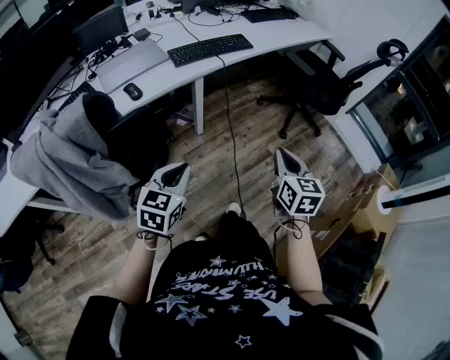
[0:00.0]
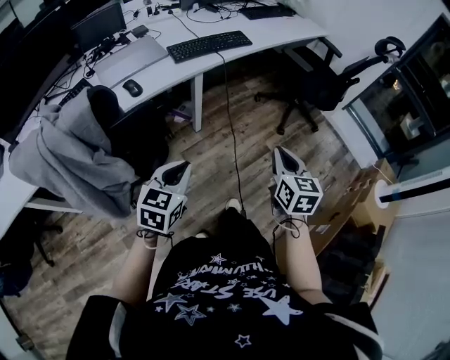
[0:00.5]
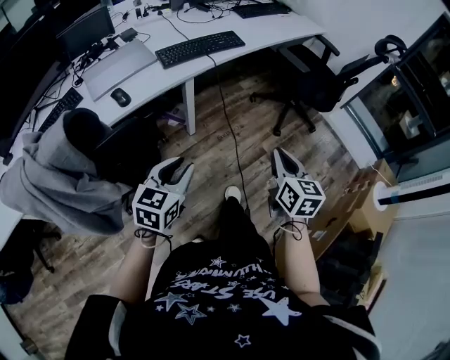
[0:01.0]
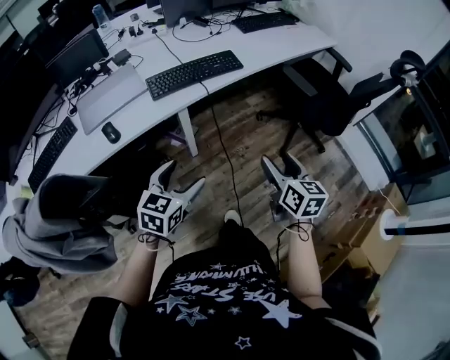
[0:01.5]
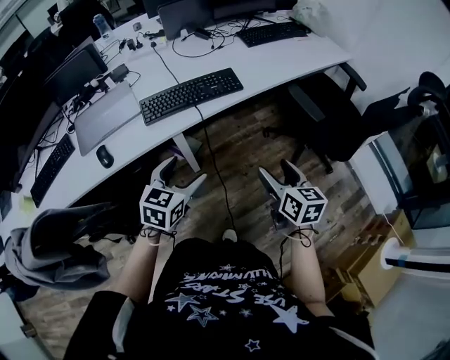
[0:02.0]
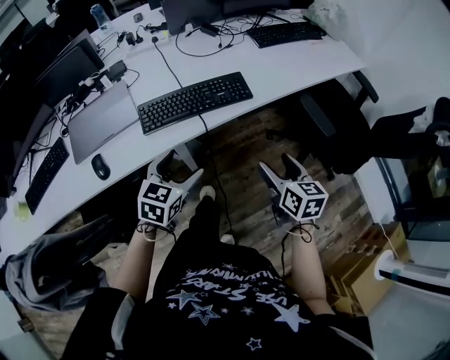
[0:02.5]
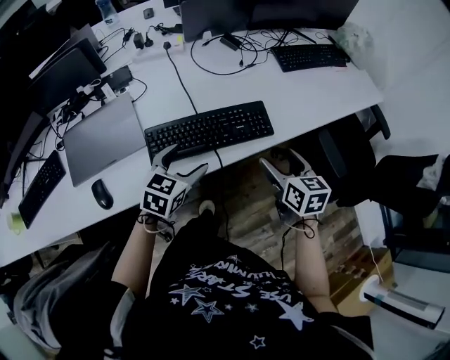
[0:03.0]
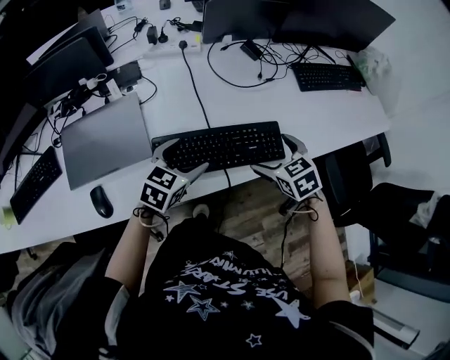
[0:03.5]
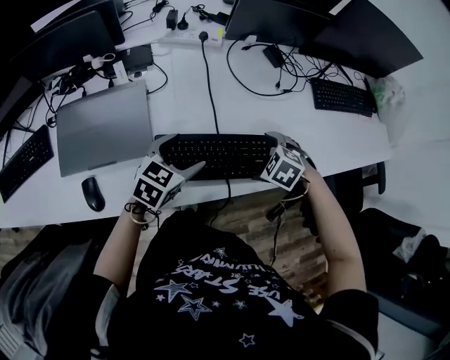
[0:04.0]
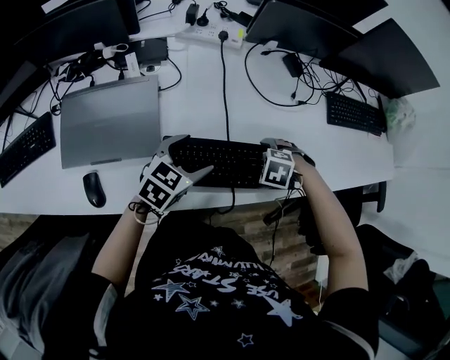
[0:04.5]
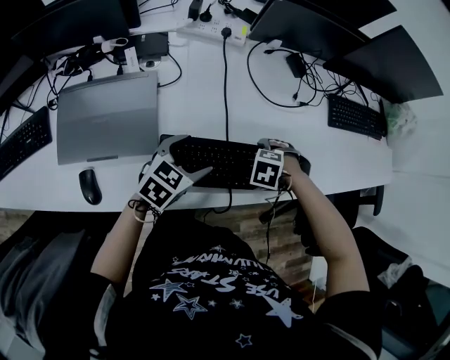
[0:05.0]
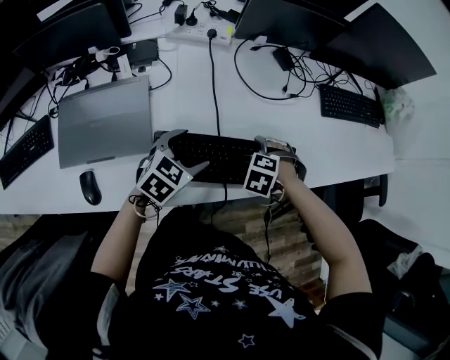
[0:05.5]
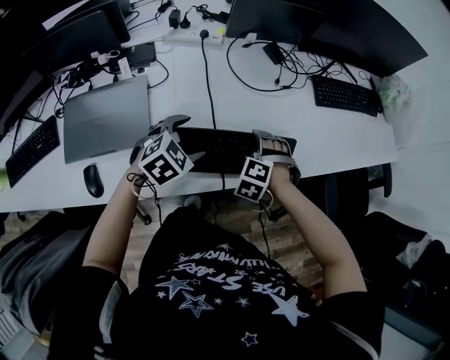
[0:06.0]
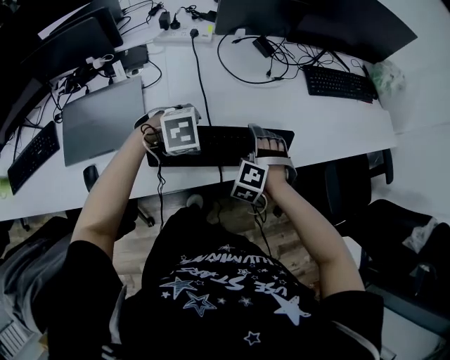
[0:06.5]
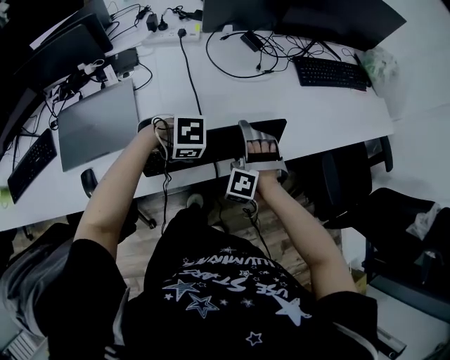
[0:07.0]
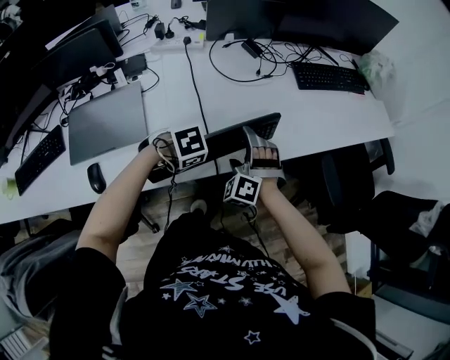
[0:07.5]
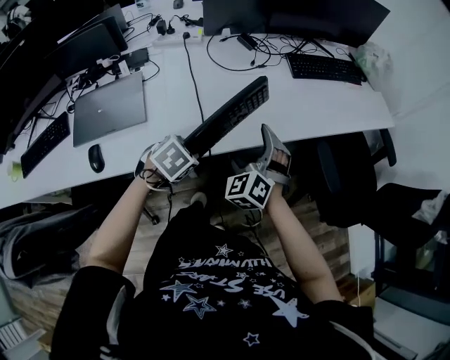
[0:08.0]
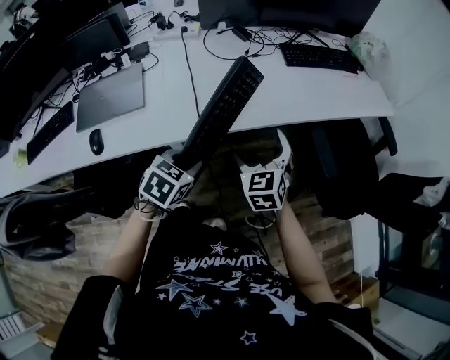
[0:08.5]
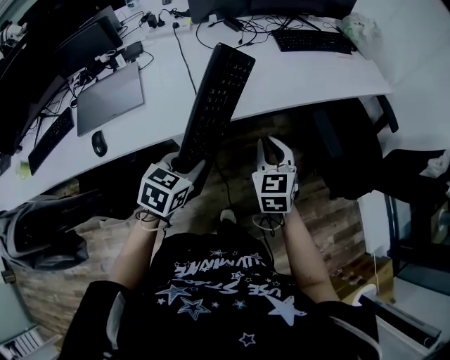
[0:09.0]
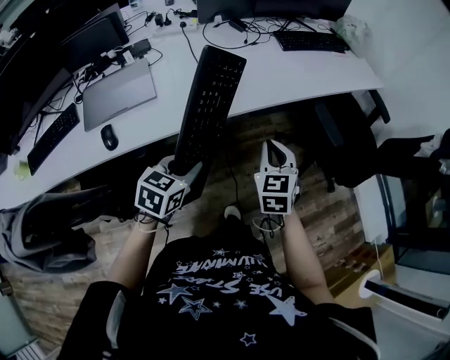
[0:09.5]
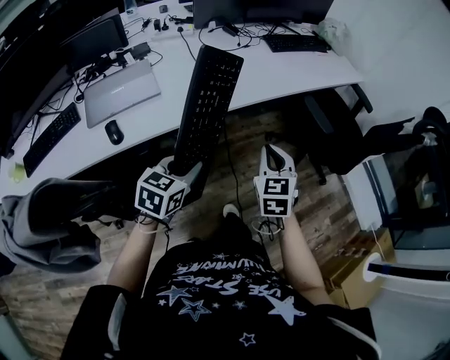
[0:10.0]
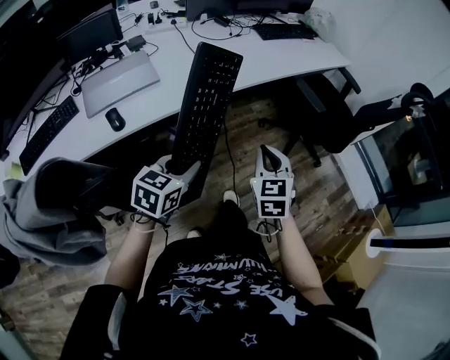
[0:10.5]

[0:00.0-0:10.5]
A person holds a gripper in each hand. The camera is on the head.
0:00.0 to 0:02.0: Both grippers travel together forward, approximately 35 cm. The right gripper opens up, while the left gripper opens.
0:02.0 to 0:04.0: The right gripper shifts by approximately 50 cm, angles its fingers downward, by approximately 60 degrees, and opens, while the left gripper ends up some 40 cm from where it was.
0:04.0 to 0:06.5: The left gripper shifts by some 5 cm, and tips its fingers downward by some 30 degrees. The right gripper turns by about 30 degrees.
0:06.5 to 0:08.5: The left gripper moves approximately 25 cm, rotates some 50 degrees, and closes up, while the right gripper shifts by about 25 cm, and twists some 50 degrees clockwise, seen from behind.
0:08.5 to 0:10.5: Both grippers move backward, roughly 30 cm. The left gripper swivels roughly 20 degrees, while the right gripper turns by some 20 degrees, and closes.

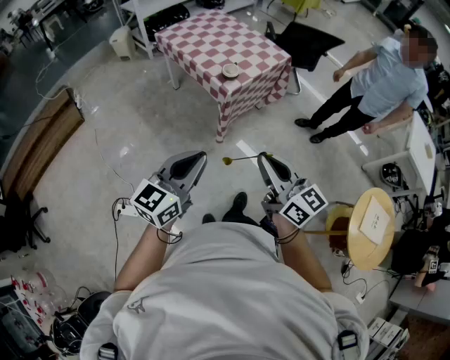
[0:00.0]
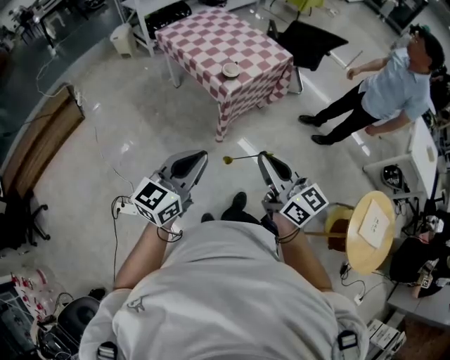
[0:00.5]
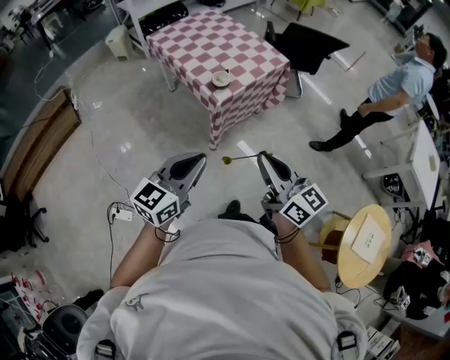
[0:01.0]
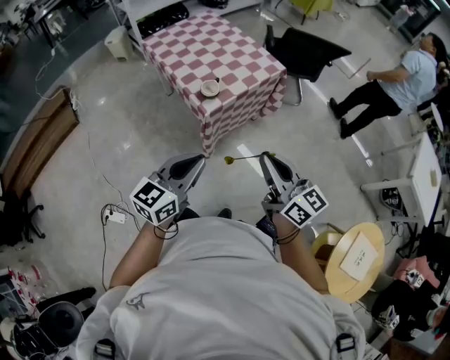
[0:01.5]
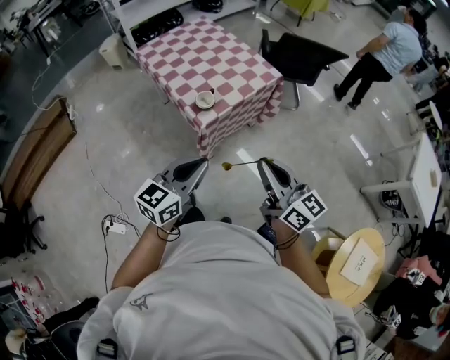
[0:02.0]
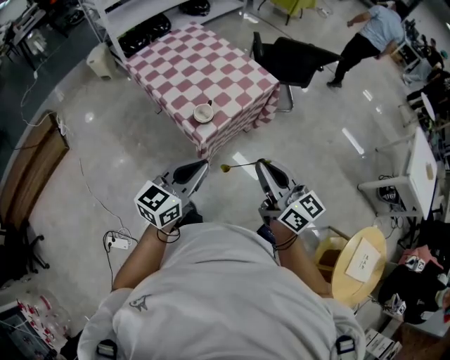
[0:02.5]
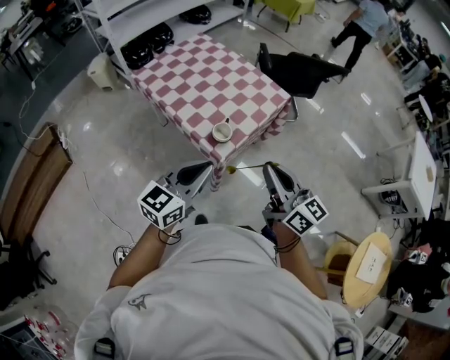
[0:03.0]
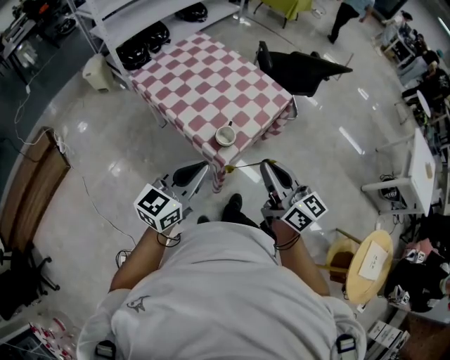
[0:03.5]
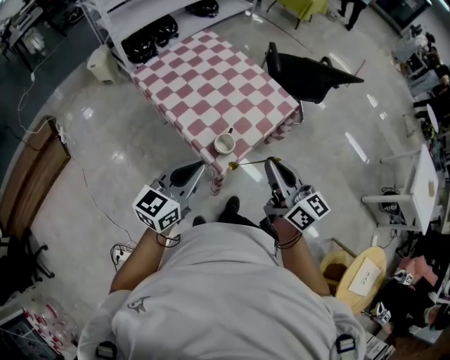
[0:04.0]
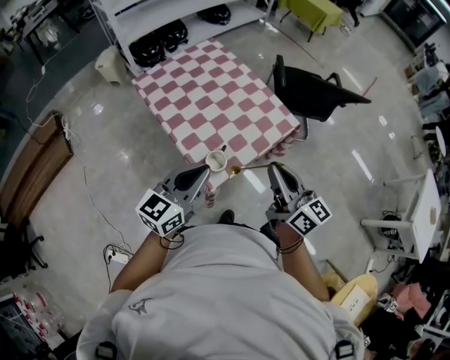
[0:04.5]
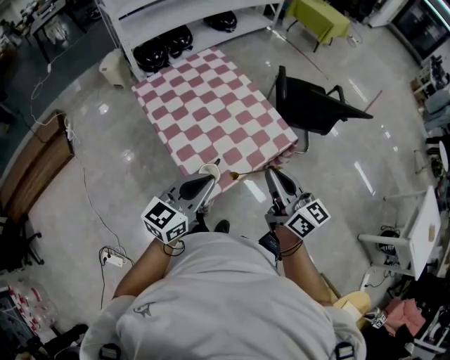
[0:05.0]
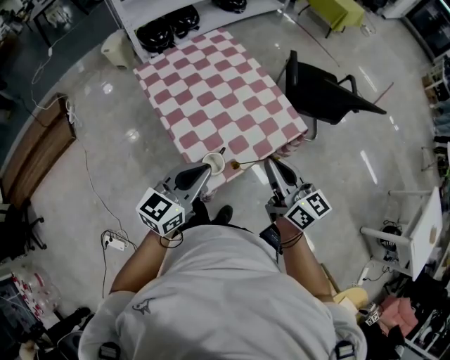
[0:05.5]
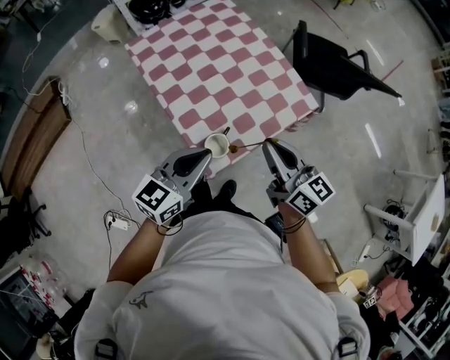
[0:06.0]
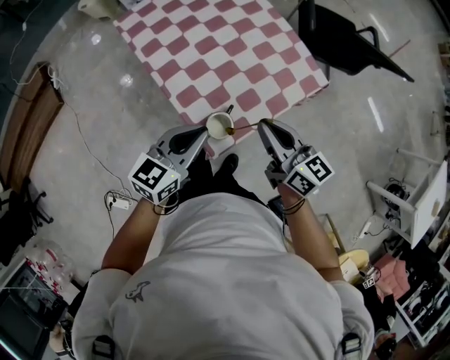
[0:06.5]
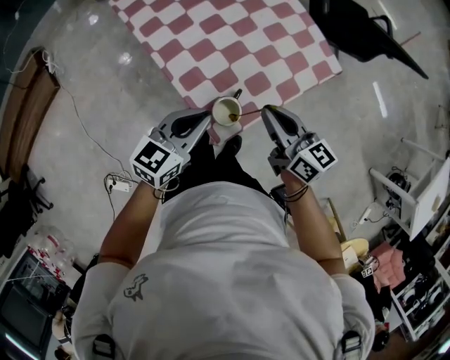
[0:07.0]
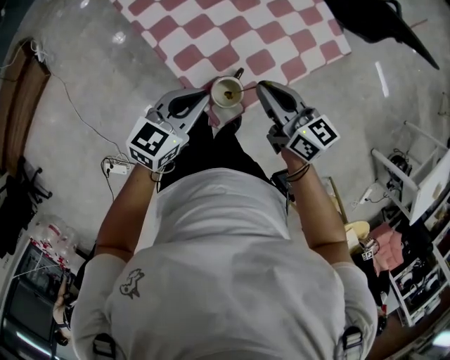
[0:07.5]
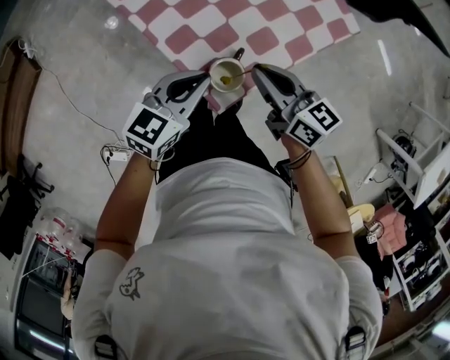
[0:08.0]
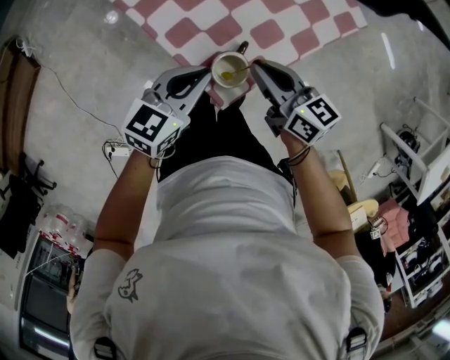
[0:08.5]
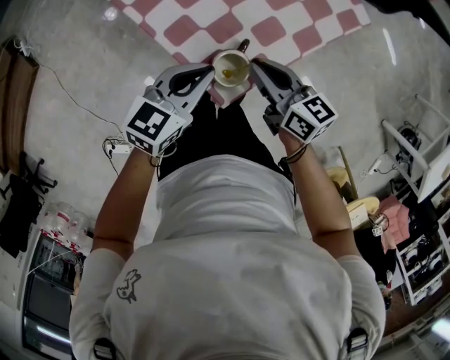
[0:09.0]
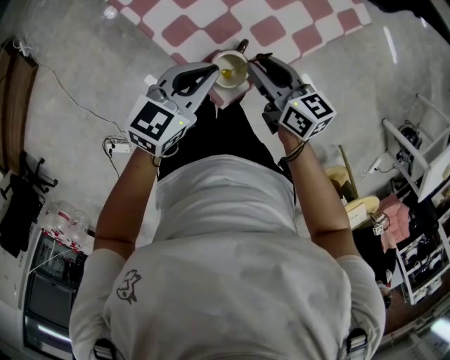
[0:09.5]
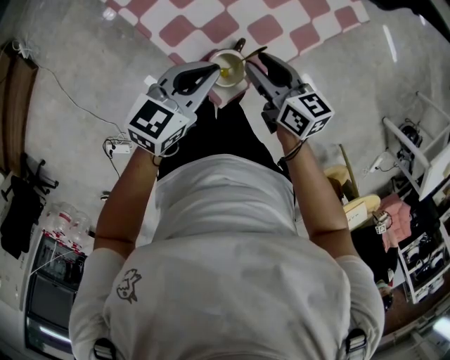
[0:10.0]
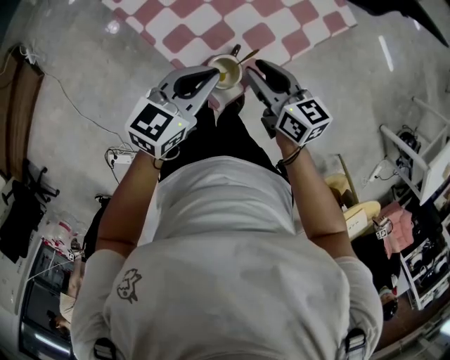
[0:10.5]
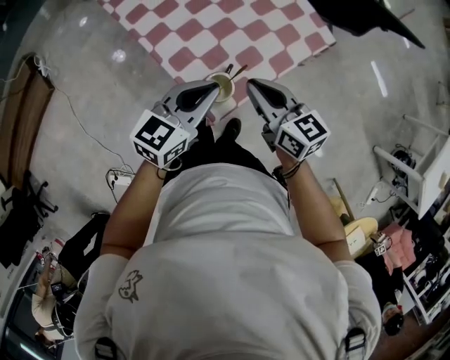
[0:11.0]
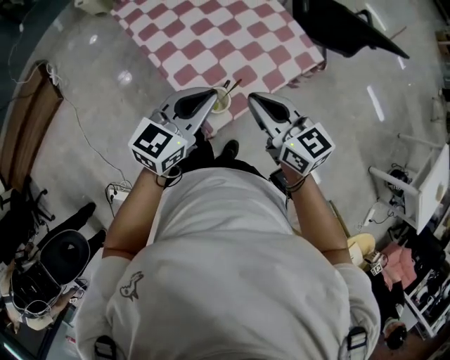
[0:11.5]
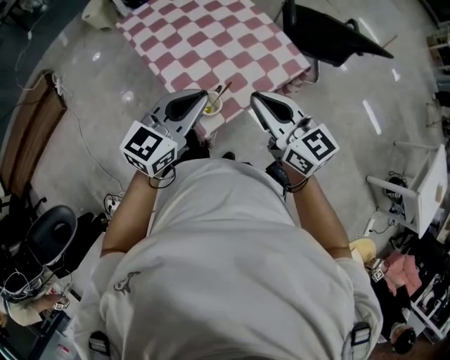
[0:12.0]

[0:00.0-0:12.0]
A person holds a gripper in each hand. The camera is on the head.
0:00.0 to 0:02.0: Both grippers move forward and to the right, approximately 30 cm.
0:02.0 to 0:04.0: Both grippers move forward and to the left, some 25 cm.
0:04.0 to 0:06.0: The right gripper goes about 20 cm forward and downward, while the left gripper travels forward, to the right and downward by about 15 cm.
0:06.0 to 0:08.0: Both grippers travel together downward, approximately 15 cm.
0:08.0 to 0:10.0: The right gripper shifts roughly 5 cm downward, and opens.
0:10.0 to 0:12.0: The two grippers go approximately 25 cm upward. The left gripper swivels roughly 30 degrees, while the right gripper changes its angle by approximately 40 degrees, and closes up.

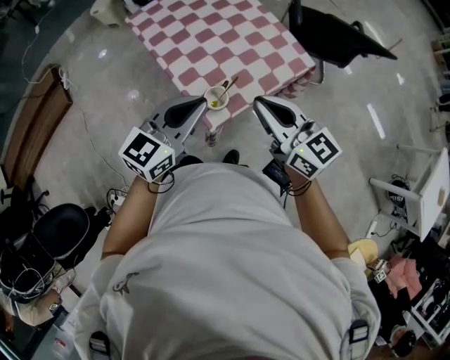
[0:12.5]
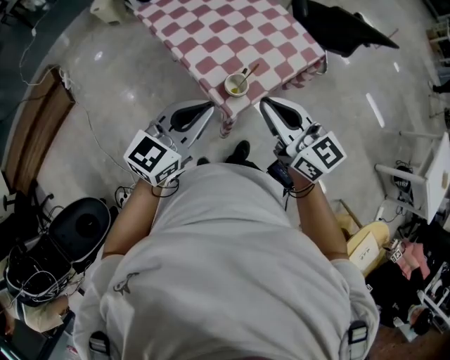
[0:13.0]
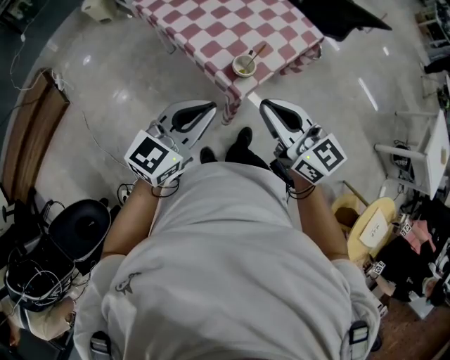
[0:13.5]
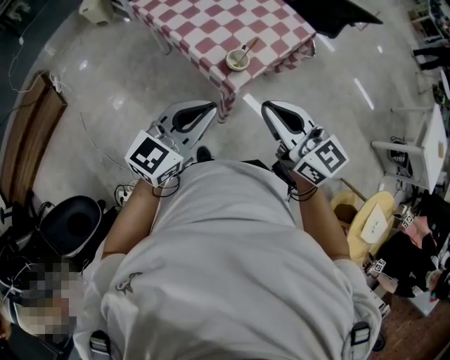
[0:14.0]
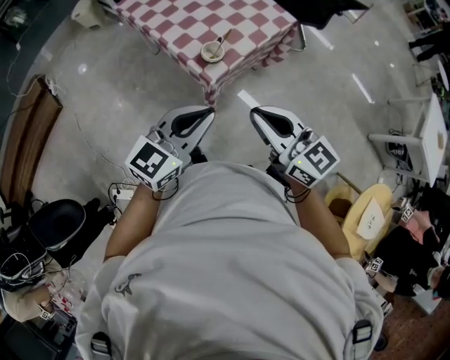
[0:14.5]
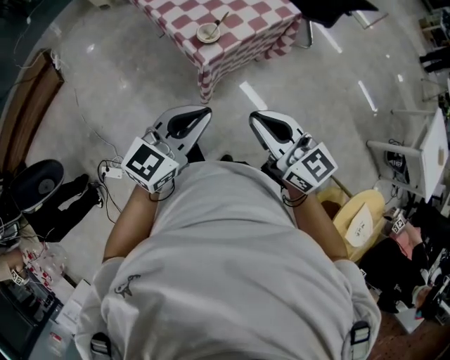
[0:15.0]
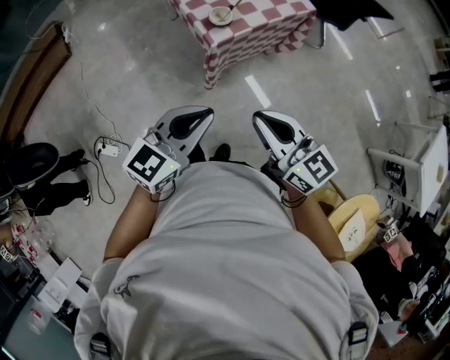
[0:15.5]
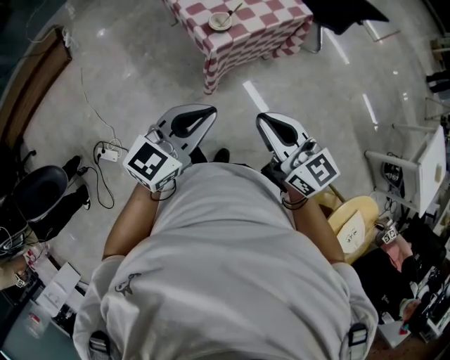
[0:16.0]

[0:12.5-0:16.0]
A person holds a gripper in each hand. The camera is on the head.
0:12.5 to 0:14.5: Both grippers move backward, about 25 cm.
0:14.5 to 0:16.0: Both grippers travel together backward and to the right, roughly 15 cm.

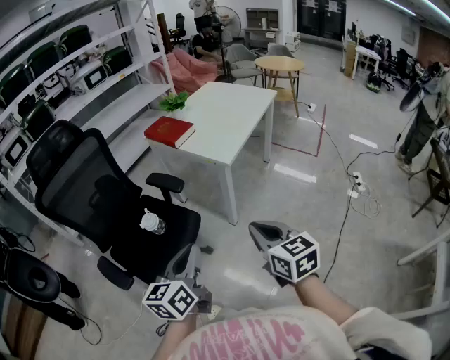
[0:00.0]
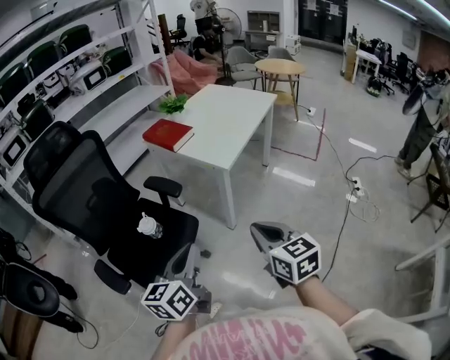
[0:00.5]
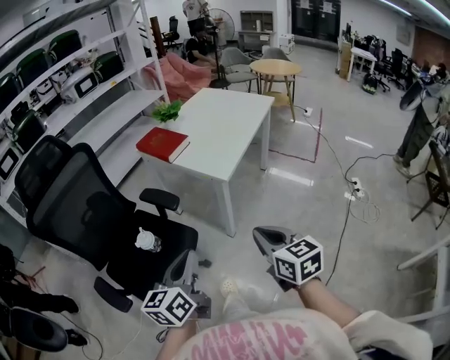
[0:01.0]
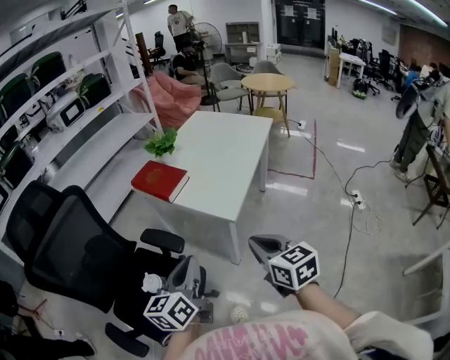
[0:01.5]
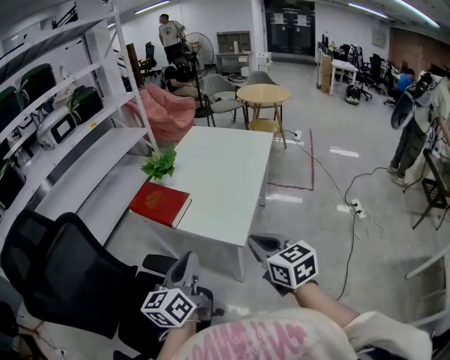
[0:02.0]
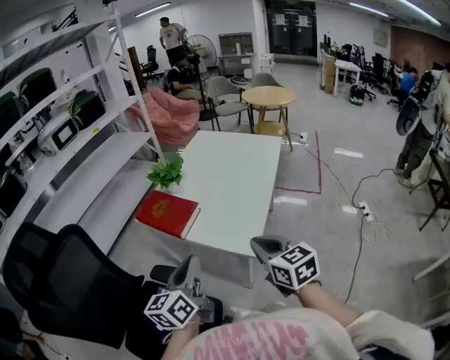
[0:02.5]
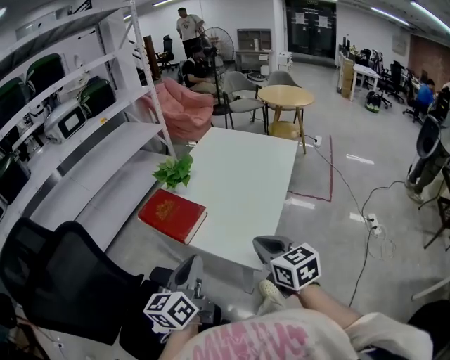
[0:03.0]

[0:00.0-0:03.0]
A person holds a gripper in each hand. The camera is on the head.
0:00.0 to 0:01.5: Both grippers travel together forward, approximately 20 cm.
0:01.5 to 0:03.0: Both grippers travel together forward, roughly 20 cm.
